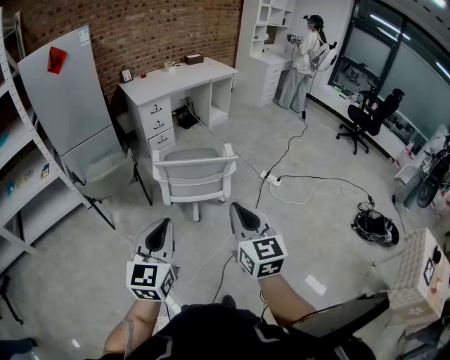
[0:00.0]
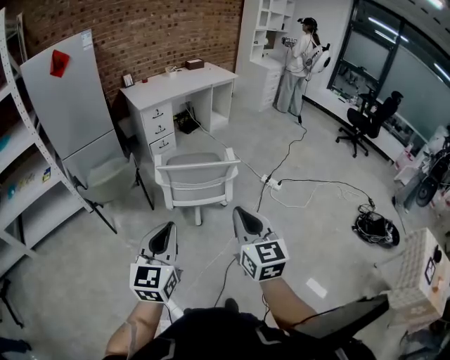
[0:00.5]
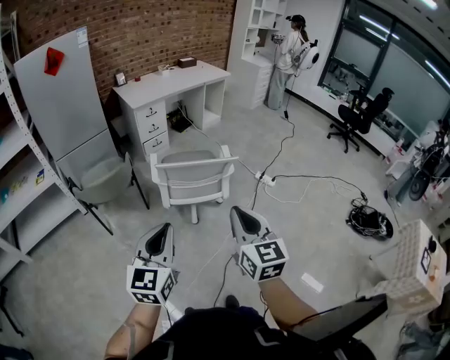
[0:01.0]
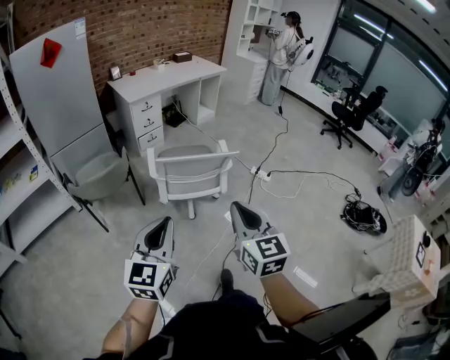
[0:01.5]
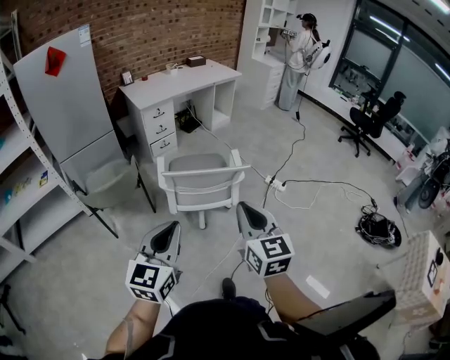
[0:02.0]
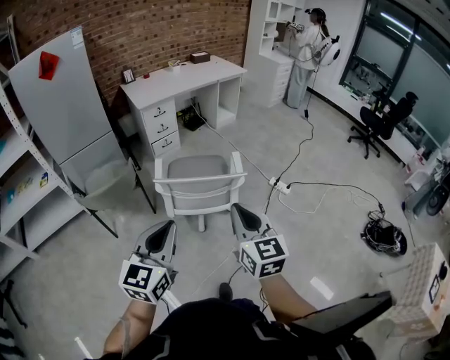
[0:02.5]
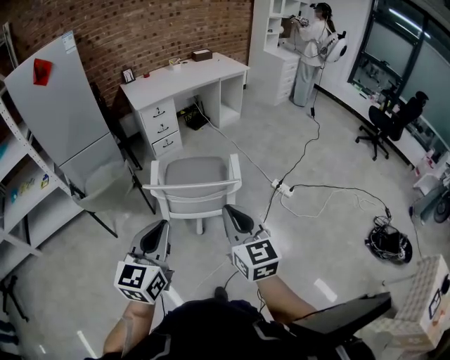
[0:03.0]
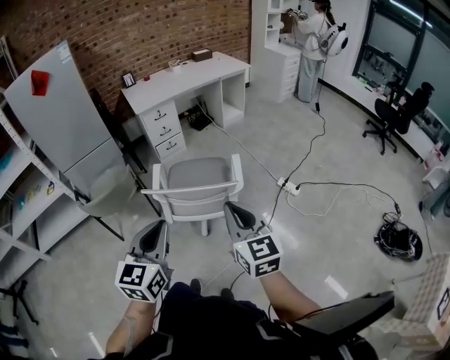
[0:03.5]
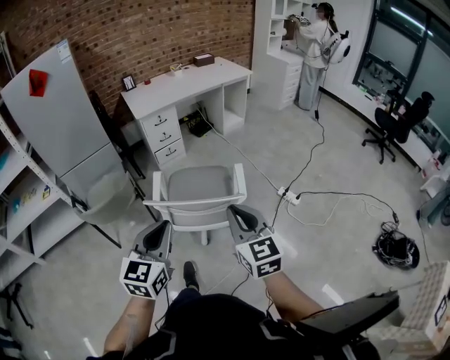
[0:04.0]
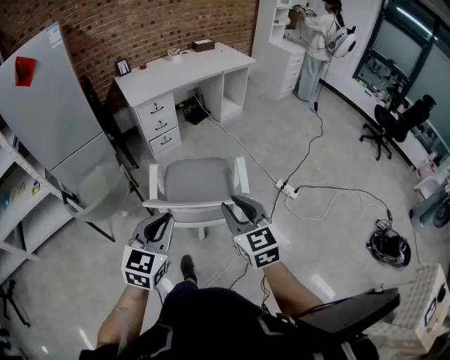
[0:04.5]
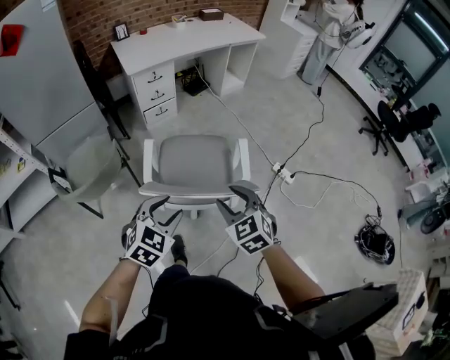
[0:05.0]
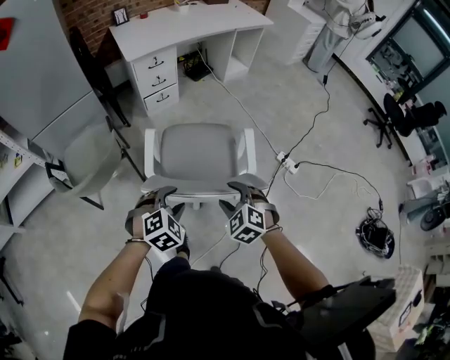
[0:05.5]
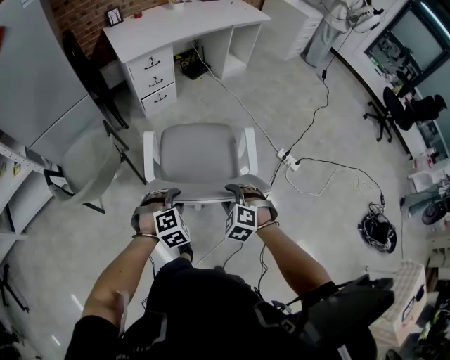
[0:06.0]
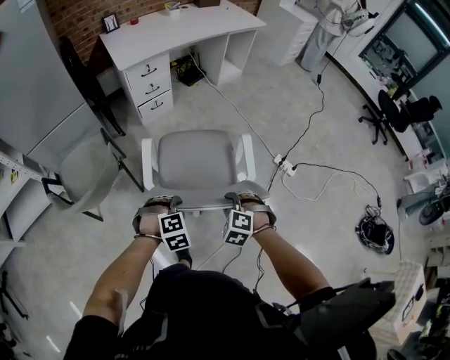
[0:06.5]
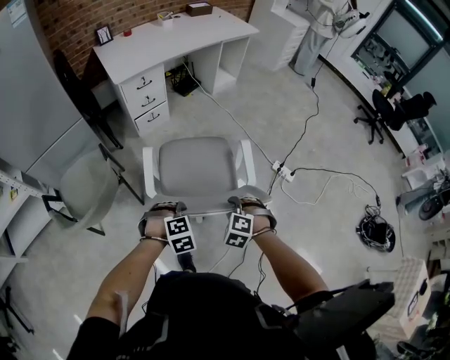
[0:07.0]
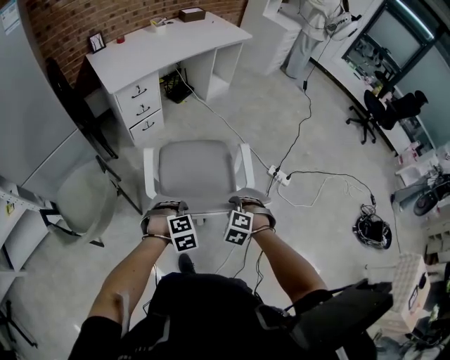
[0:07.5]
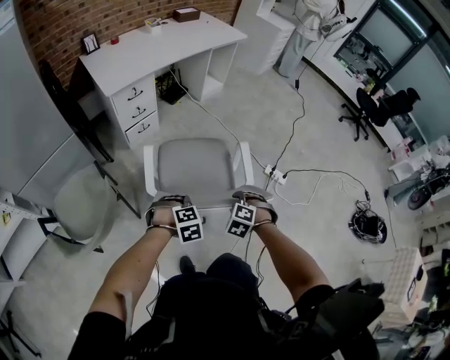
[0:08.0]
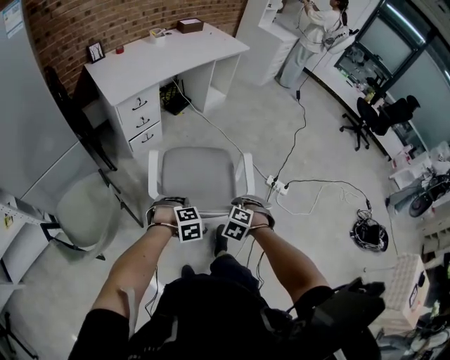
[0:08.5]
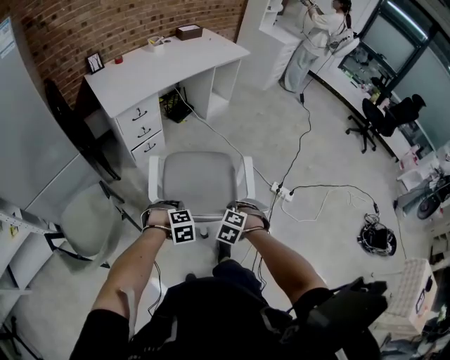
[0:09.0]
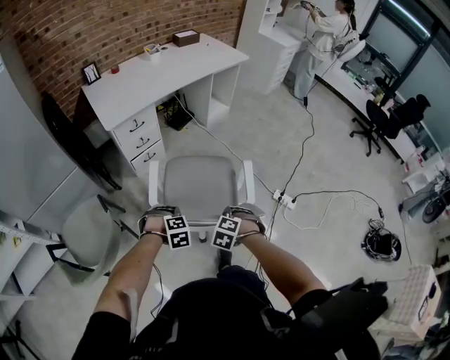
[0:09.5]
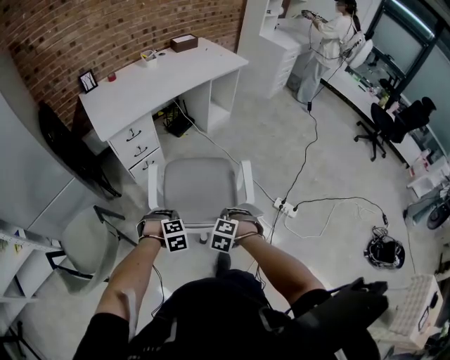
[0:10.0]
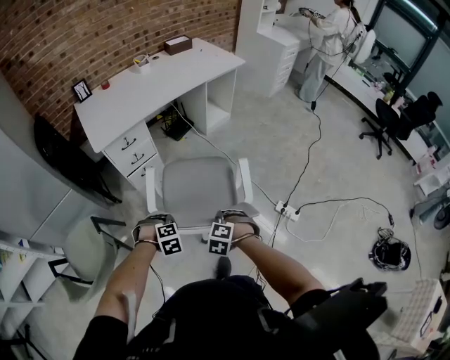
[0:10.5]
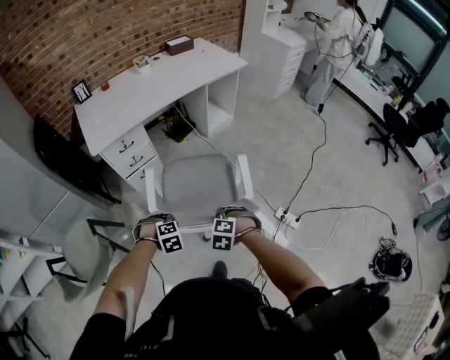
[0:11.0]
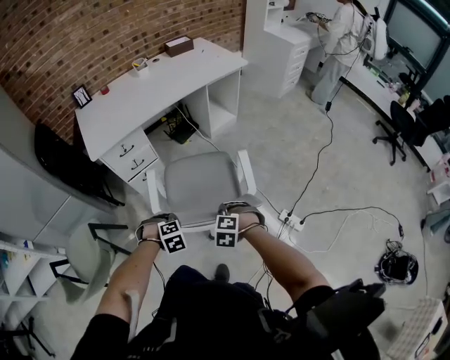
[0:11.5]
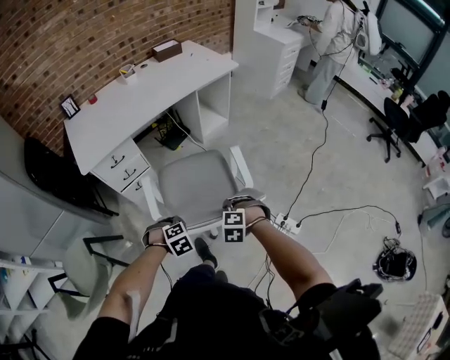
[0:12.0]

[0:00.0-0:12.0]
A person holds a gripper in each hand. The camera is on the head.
0:00.0 to 0:02.0: The two grippers go some 5 cm forward.
0:02.0 to 0:04.0: The two grippers go some 20 cm forward and to the right.
0:04.0 to 0:06.0: The two grippers go some 35 cm downward and forward. The right gripper tilts its fingers approximately 50 degrees downward, and opens, while the left gripper angles its fingers downward, by some 50 degrees, and opens its fingers.
0:06.0 to 0:08.0: The right gripper shifts by roughly 10 cm, while the left gripper moves some 10 cm.
0:08.0 to 0:10.0: The left gripper shifts by some 15 cm; the right gripper changes place by approximately 15 cm.
0:10.0 to 0:12.0: The left gripper shifts by approximately 20 cm; the right gripper changes place by roughly 25 cm.

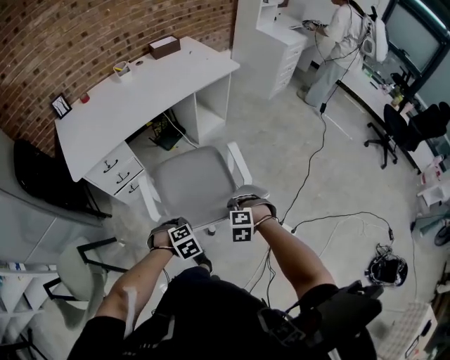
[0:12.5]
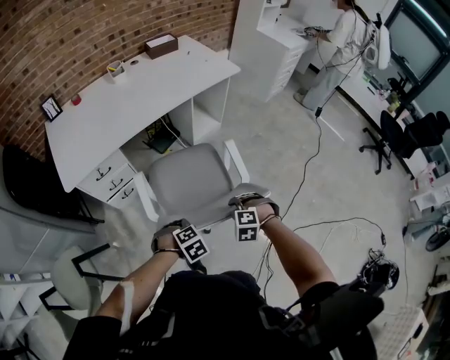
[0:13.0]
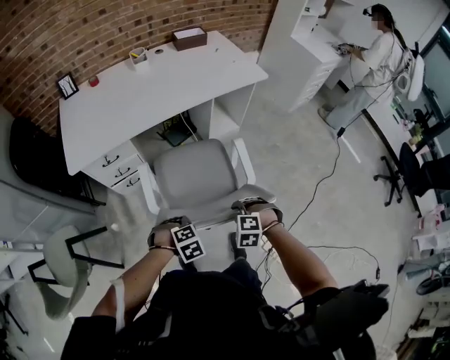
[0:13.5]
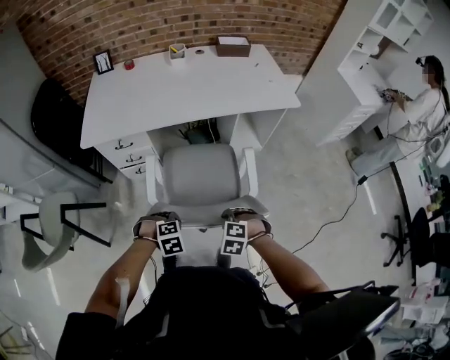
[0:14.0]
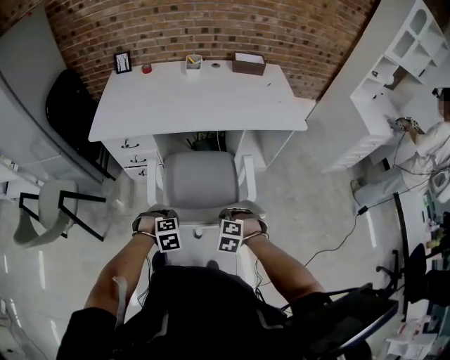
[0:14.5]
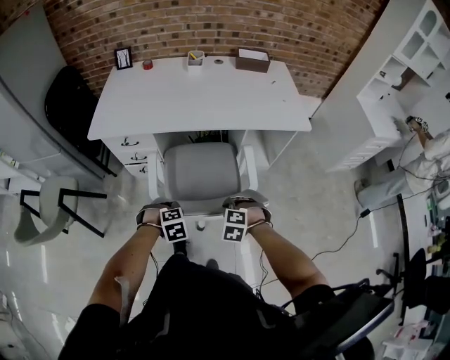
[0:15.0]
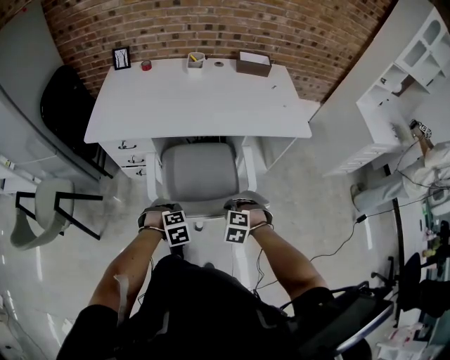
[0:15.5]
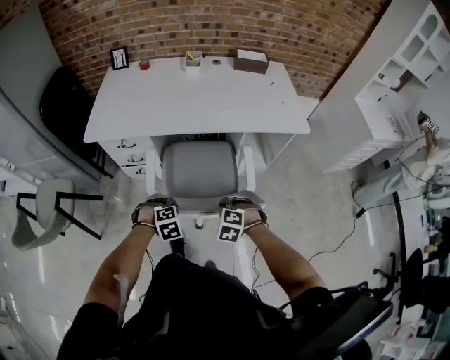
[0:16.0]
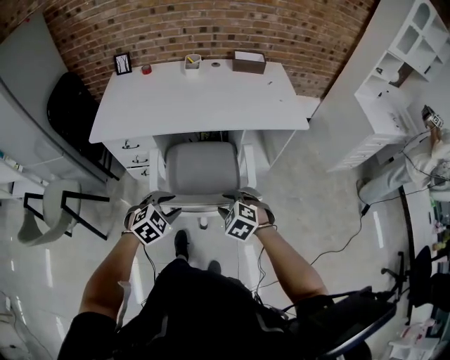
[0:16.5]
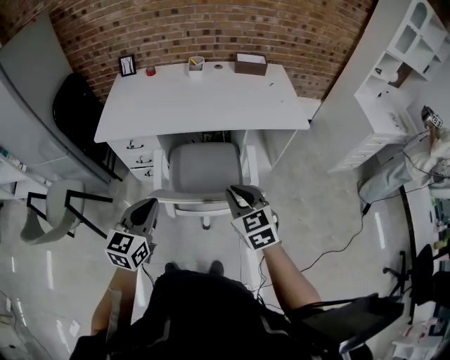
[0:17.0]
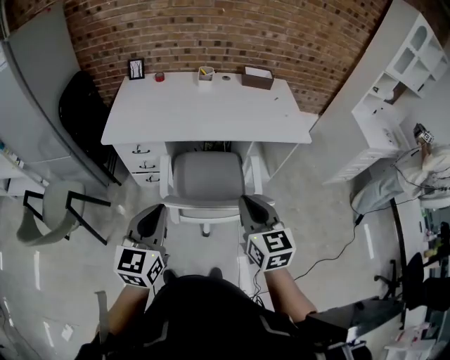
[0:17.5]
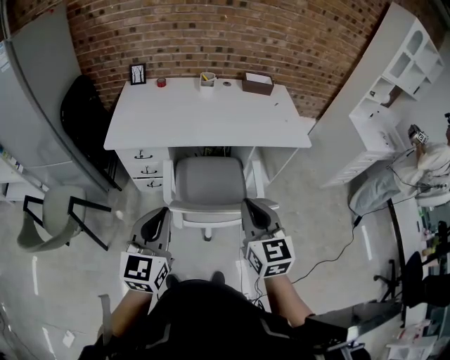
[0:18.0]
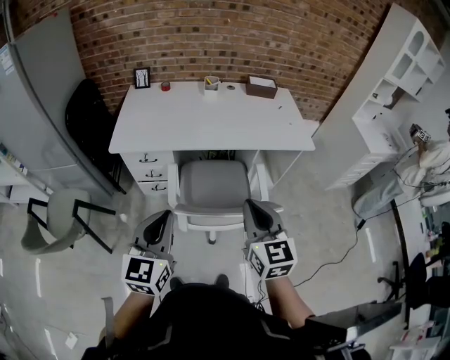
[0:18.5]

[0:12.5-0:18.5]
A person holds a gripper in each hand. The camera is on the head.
0:12.5 to 0:14.5: The left gripper shifts by roughly 20 cm, and swivels approximately 20 degrees. Meanwhile the right gripper moves approximately 25 cm, and rotates roughly 30 degrees.
0:14.5 to 0:16.5: Both grippers travel together upward, about 10 cm. The left gripper turns by about 30 degrees, and opens. Meanwhile the right gripper turns by approximately 20 degrees, and opens.
0:16.5 to 0:18.5: The left gripper heads upward and to the left, covering roughly 25 cm, points its fingers approximately 40 degrees further upward, and closes. Meanwhile the right gripper heads upward, covering approximately 25 cm, points its fingers approximately 40 degrees further upward, and closes.

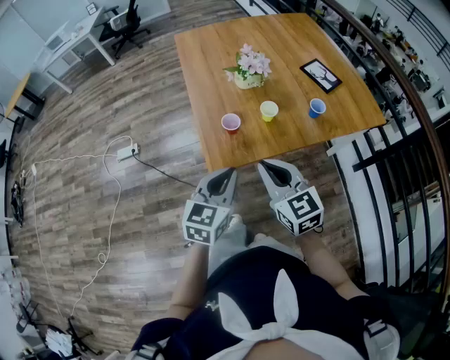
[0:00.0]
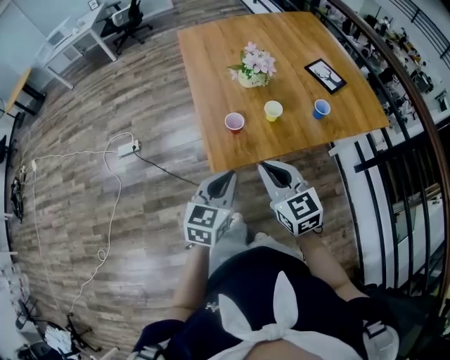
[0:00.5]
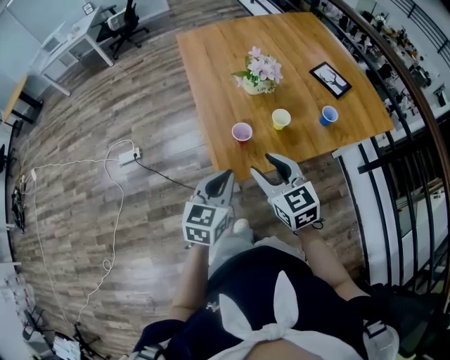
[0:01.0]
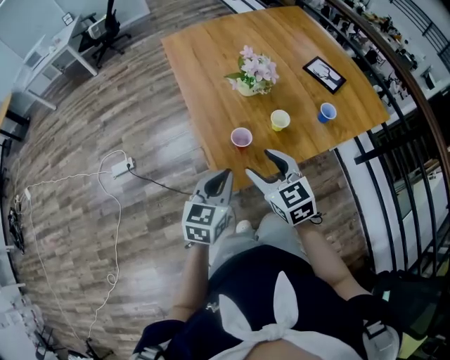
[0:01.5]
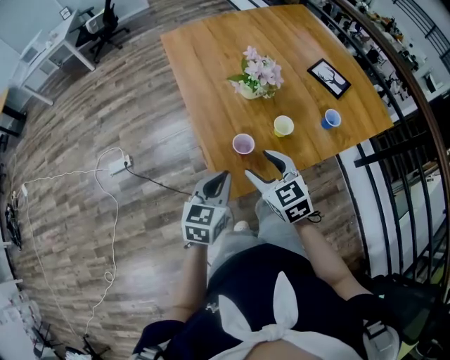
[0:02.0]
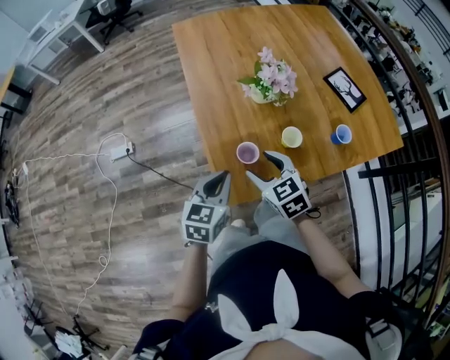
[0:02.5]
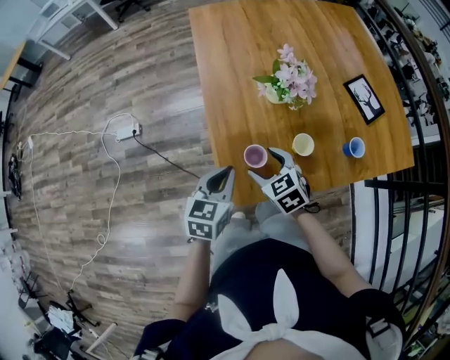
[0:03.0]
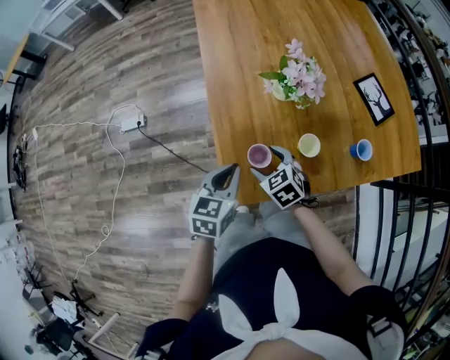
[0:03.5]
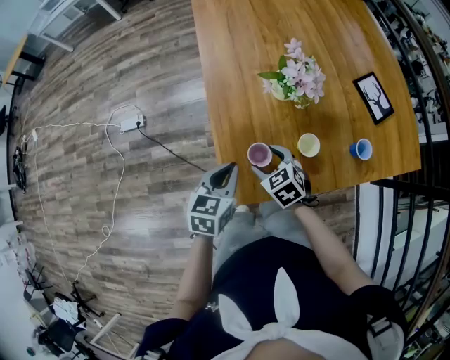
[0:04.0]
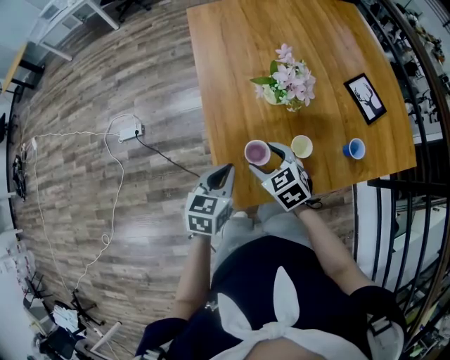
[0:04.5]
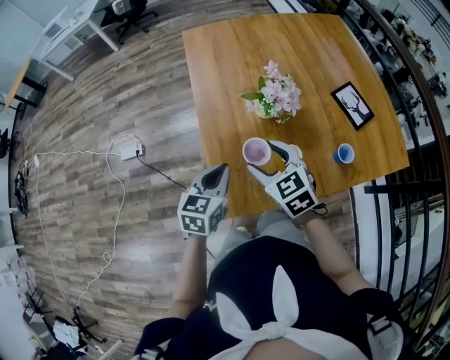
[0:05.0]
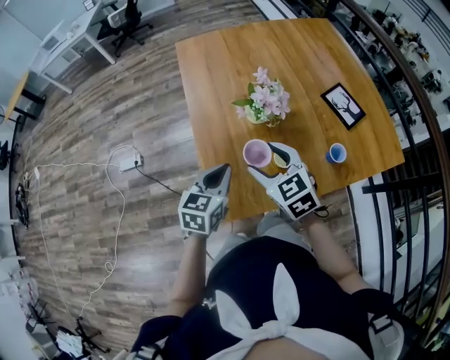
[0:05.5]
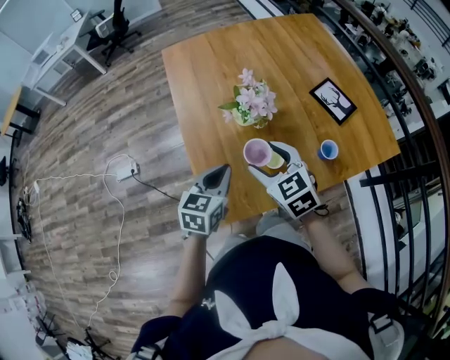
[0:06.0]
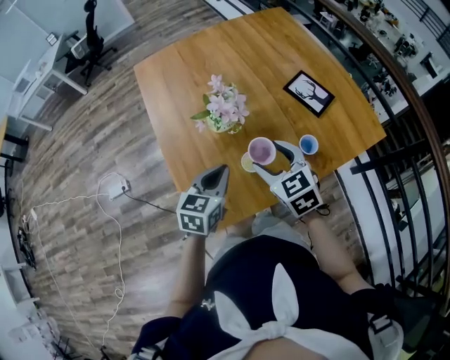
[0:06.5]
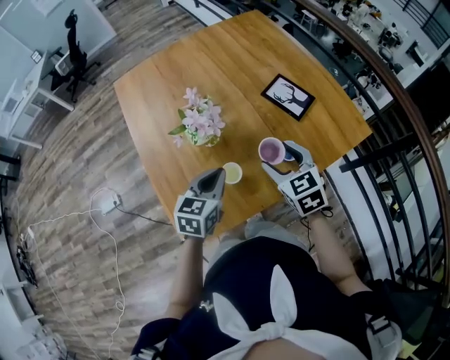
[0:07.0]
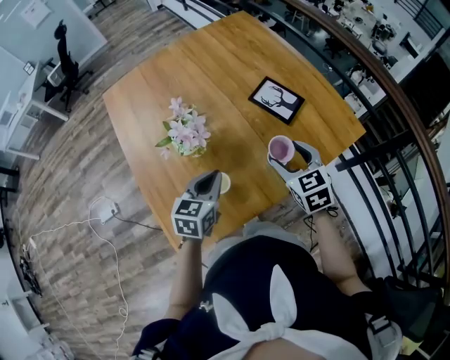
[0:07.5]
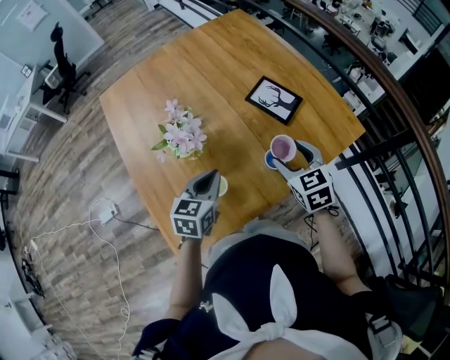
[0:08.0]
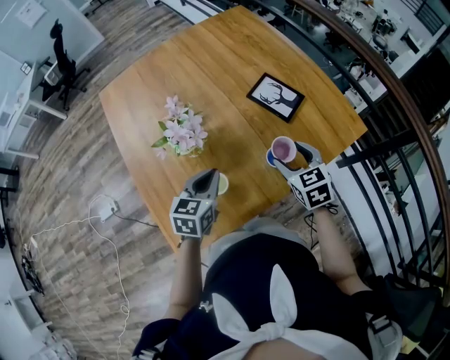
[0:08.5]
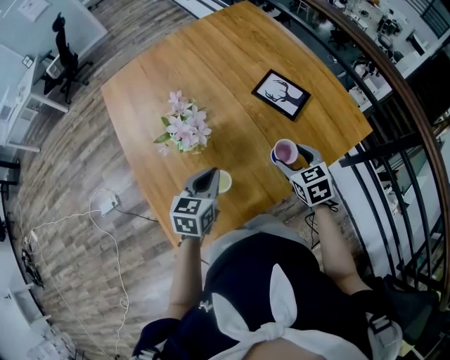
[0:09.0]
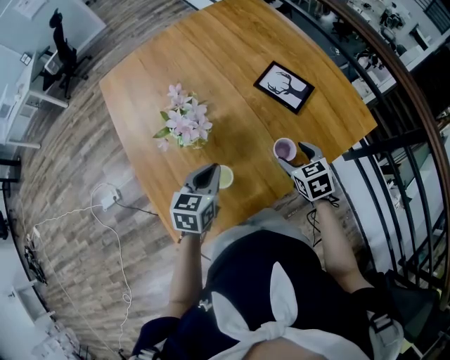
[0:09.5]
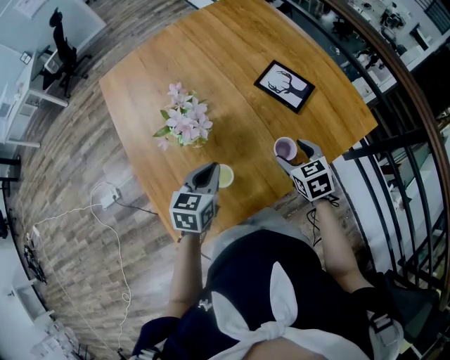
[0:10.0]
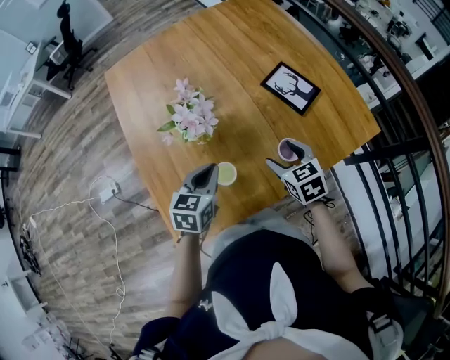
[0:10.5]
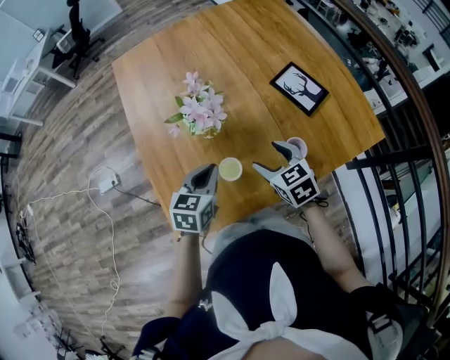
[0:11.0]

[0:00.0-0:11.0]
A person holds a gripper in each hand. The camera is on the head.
0:00.0 to 0:02.0: The left gripper goes roughly 20 cm forward, to the left and downward. Meanwhile the right gripper moves forward, downward and to the left, roughly 20 cm, and opens up.
0:02.0 to 0:03.5: The left gripper travels forward and downward by about 10 cm; the right gripper moves downward and forward, roughly 15 cm, and turns by approximately 30 degrees.
0:03.5 to 0:05.5: The left gripper moves upward, roughly 5 cm, while the right gripper is displaced upward by roughly 20 cm, and swivels about 20 degrees.
0:05.5 to 0:07.5: The right gripper heads to the right, covering approximately 30 cm, and rotates some 30 degrees. The left gripper shifts approximately 25 cm to the right and forward.
0:07.5 to 0:09.0: The right gripper travels downward by some 10 cm.
0:09.0 to 0:11.0: The left gripper shifts by some 5 cm. Meanwhile the right gripper moves to the left, approximately 10 cm.
